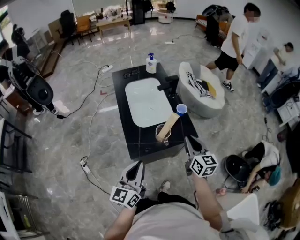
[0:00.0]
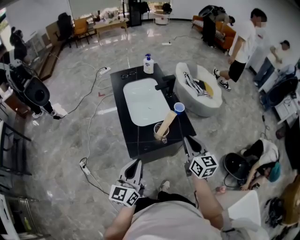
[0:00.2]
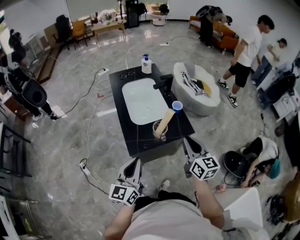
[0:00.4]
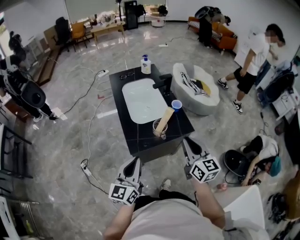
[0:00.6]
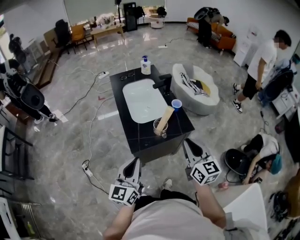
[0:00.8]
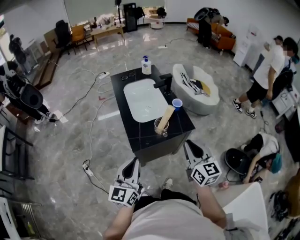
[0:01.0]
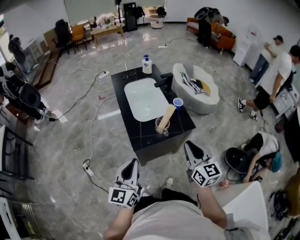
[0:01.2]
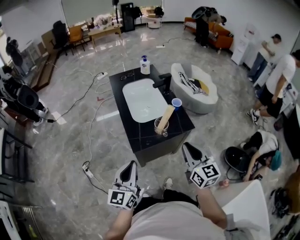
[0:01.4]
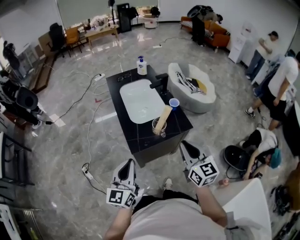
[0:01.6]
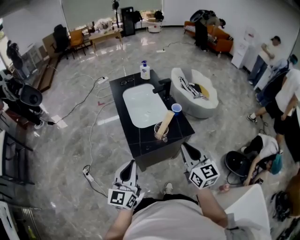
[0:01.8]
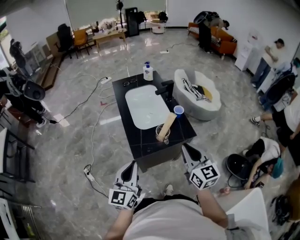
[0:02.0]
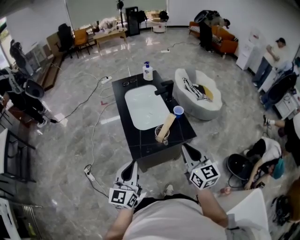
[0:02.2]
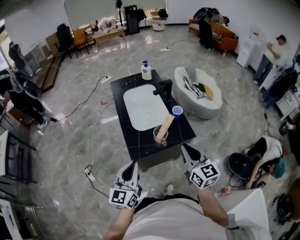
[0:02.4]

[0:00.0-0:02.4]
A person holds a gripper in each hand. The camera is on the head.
0:00.0 to 0:01.2: The left gripper is displaced backward by roughly 5 cm; the right gripper shifts roughly 15 cm backward and upward.
0:01.2 to 0:02.4: The grippers both shift forward by about 5 cm.

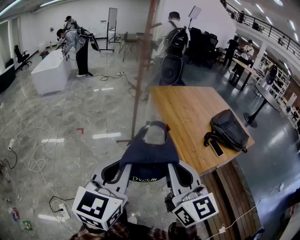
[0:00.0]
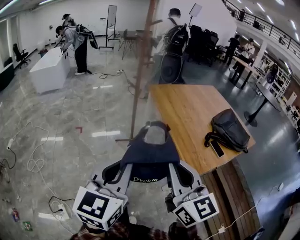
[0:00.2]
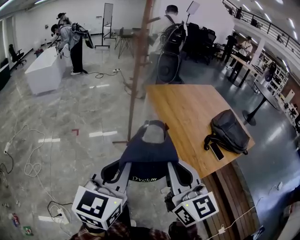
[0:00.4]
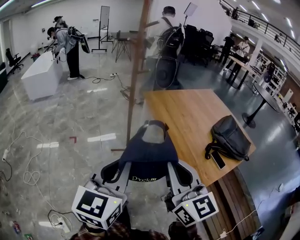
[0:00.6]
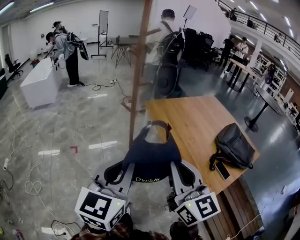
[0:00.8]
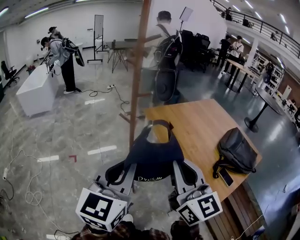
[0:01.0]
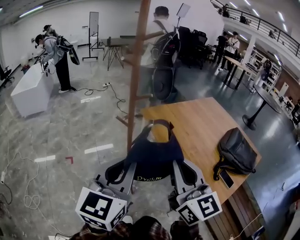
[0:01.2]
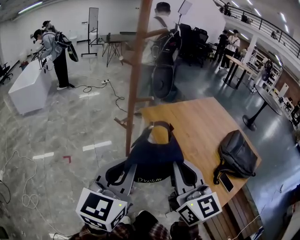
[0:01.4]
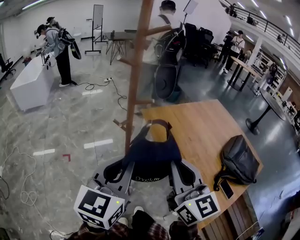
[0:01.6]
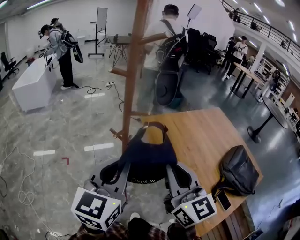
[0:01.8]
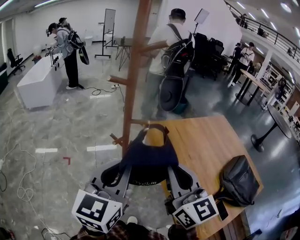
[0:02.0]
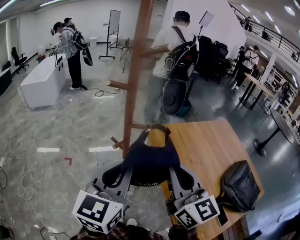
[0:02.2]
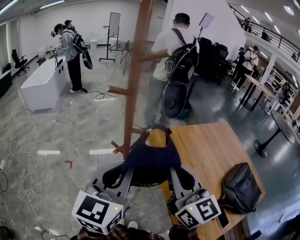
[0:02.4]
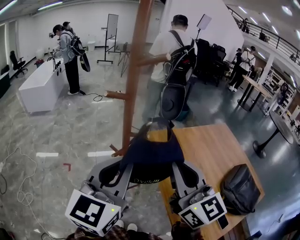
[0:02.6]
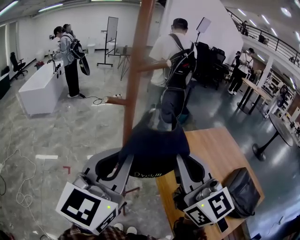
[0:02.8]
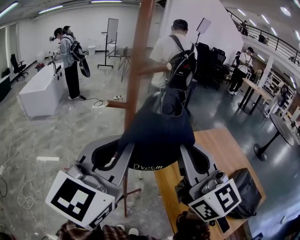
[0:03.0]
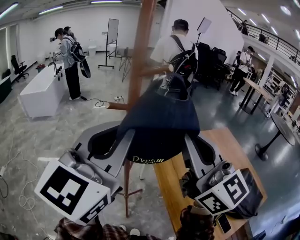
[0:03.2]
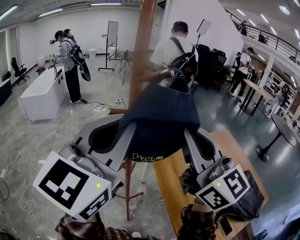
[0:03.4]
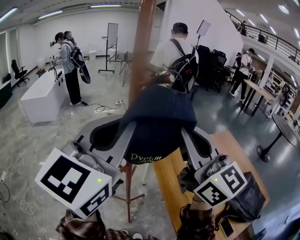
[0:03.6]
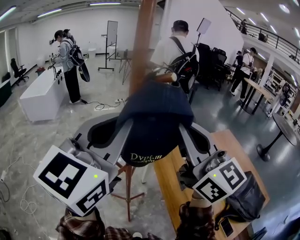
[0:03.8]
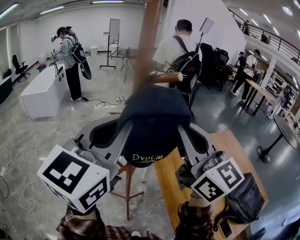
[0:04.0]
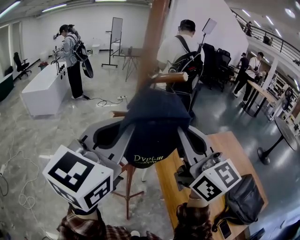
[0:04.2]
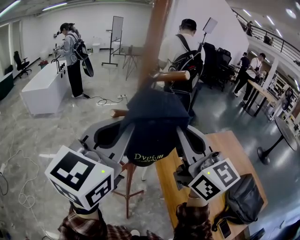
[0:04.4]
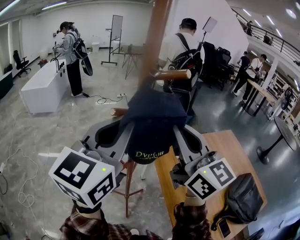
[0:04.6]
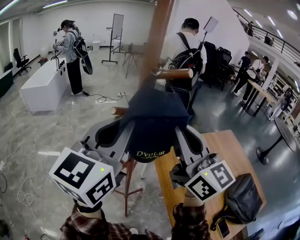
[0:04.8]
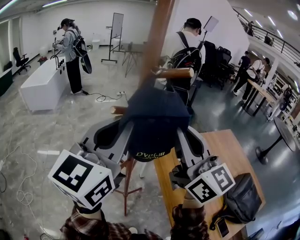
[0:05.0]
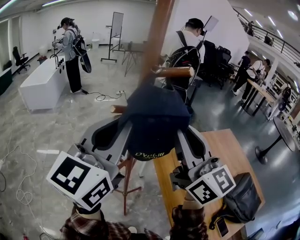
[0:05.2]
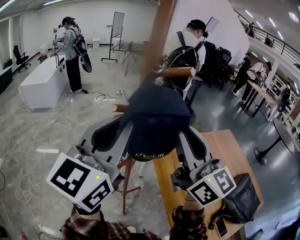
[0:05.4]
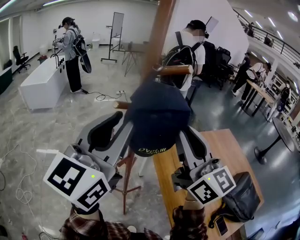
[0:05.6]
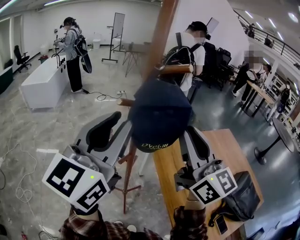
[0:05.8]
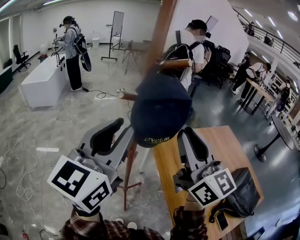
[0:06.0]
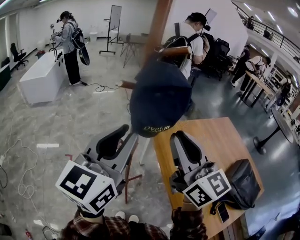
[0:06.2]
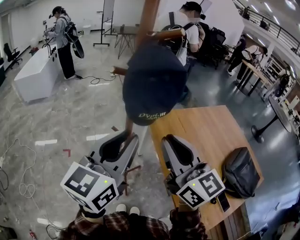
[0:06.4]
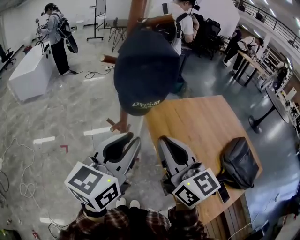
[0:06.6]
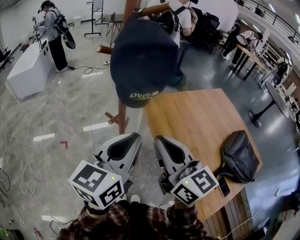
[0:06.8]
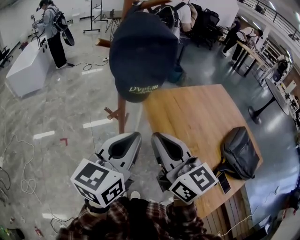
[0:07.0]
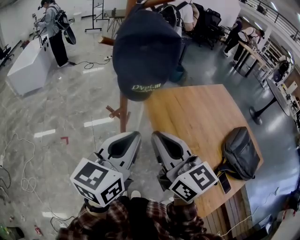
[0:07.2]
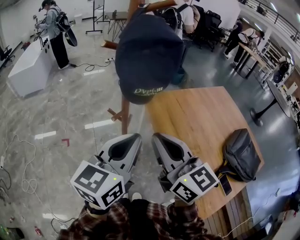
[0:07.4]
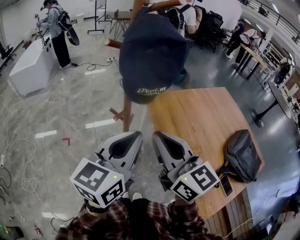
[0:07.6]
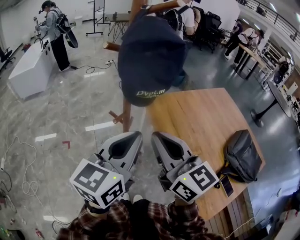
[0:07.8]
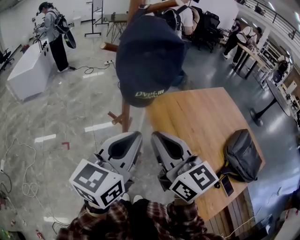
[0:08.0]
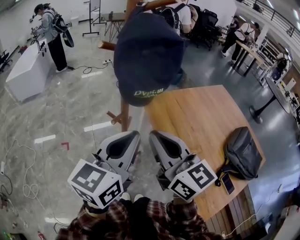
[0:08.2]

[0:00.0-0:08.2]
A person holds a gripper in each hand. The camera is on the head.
0:00.0 to 0:01.6: The two grippers travel together, forward, roughly 50 cm.
0:01.6 to 0:03.2: Both grippers travel together upward and forward, roughly 25 cm. The right gripper rotates some 20 degrees.
0:03.2 to 0:05.0: Both grippers travel together forward, roughly 10 cm.
0:05.0 to 0:06.6: Both grippers move downward and backward, about 20 cm. The left gripper turns by about 20 degrees.
0:06.6 to 0:08.2: The grippers stay close to where they were, moving slightly.

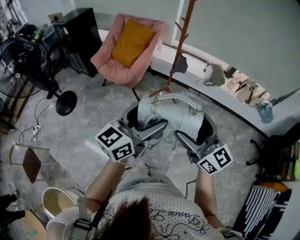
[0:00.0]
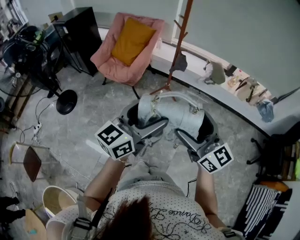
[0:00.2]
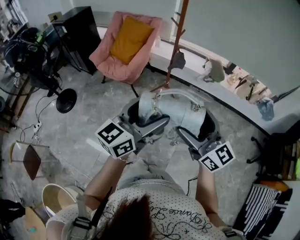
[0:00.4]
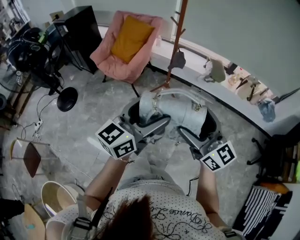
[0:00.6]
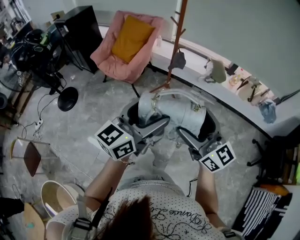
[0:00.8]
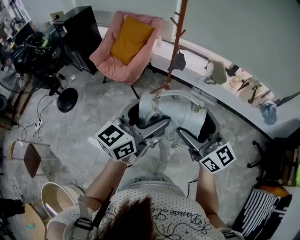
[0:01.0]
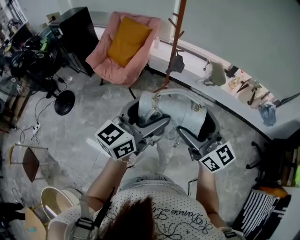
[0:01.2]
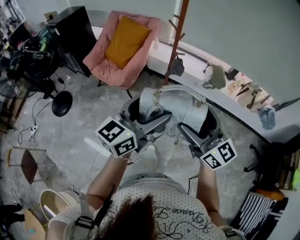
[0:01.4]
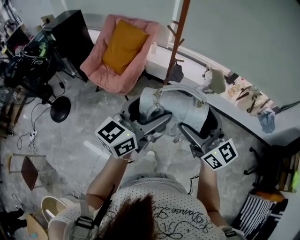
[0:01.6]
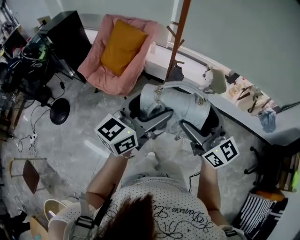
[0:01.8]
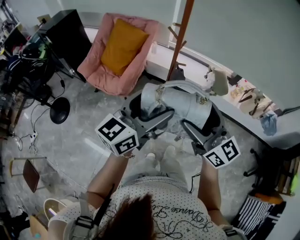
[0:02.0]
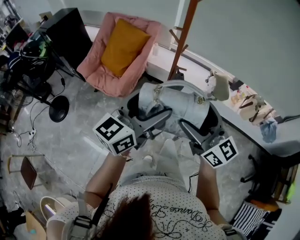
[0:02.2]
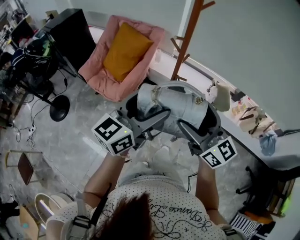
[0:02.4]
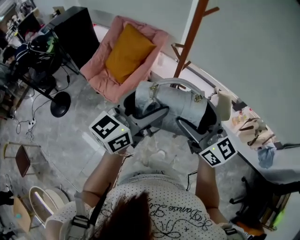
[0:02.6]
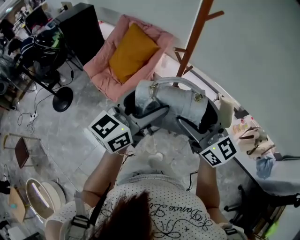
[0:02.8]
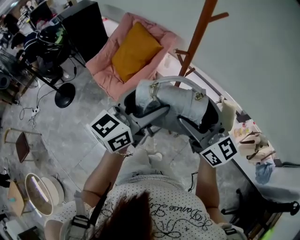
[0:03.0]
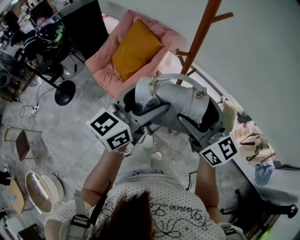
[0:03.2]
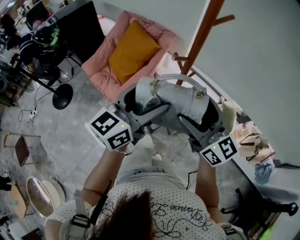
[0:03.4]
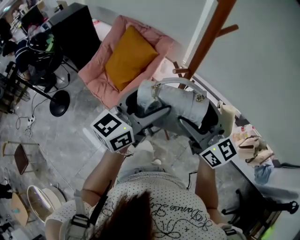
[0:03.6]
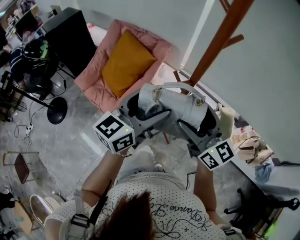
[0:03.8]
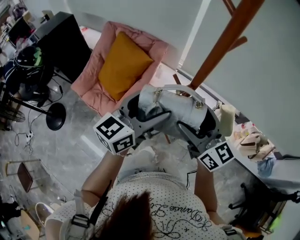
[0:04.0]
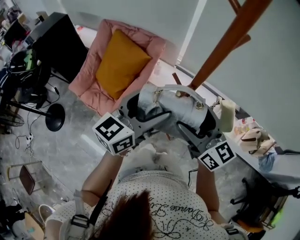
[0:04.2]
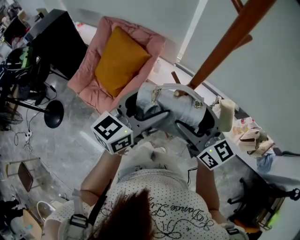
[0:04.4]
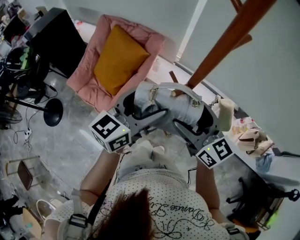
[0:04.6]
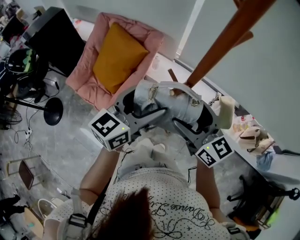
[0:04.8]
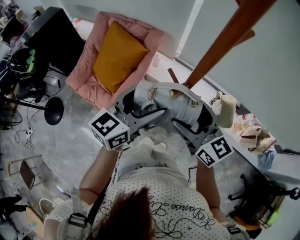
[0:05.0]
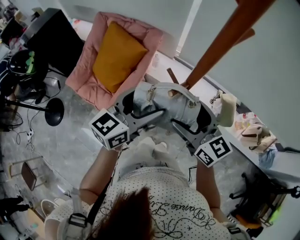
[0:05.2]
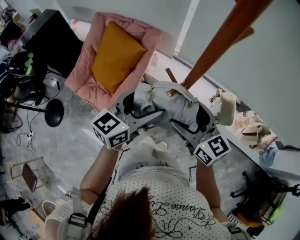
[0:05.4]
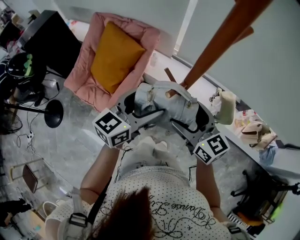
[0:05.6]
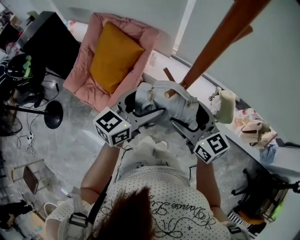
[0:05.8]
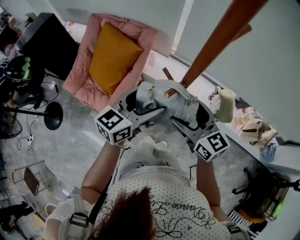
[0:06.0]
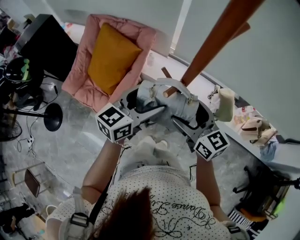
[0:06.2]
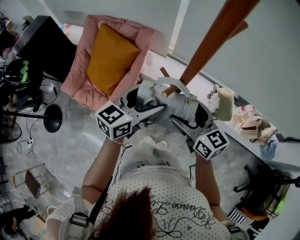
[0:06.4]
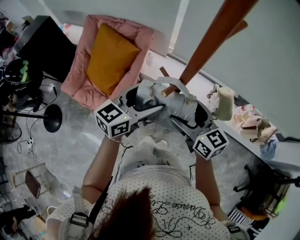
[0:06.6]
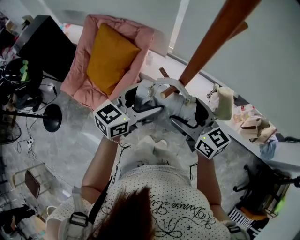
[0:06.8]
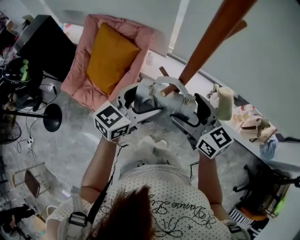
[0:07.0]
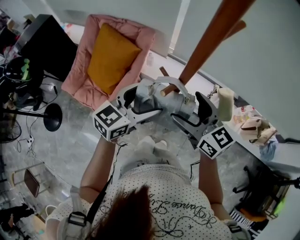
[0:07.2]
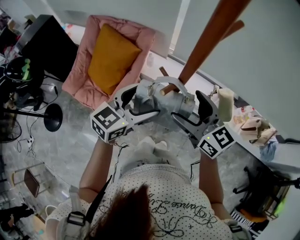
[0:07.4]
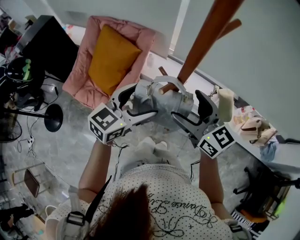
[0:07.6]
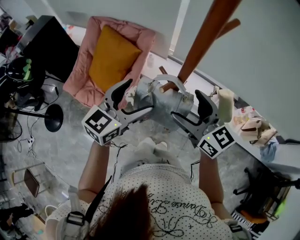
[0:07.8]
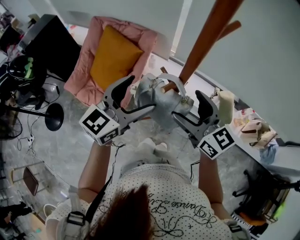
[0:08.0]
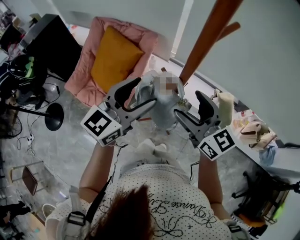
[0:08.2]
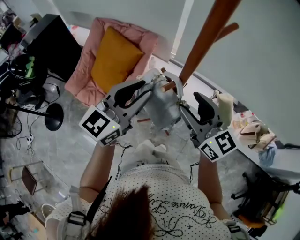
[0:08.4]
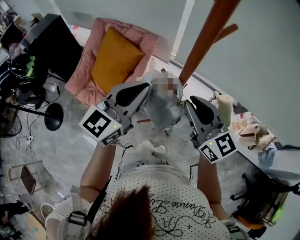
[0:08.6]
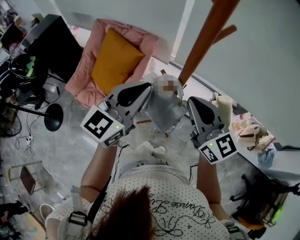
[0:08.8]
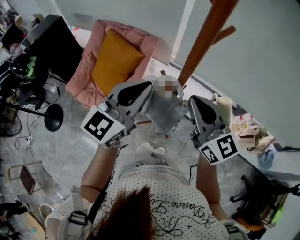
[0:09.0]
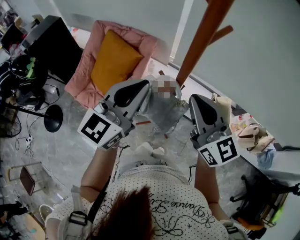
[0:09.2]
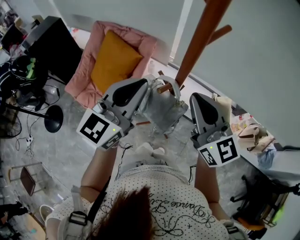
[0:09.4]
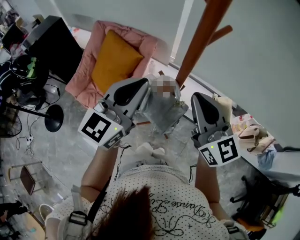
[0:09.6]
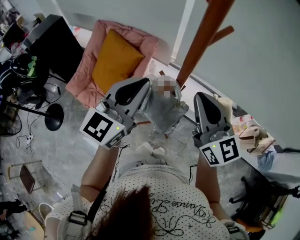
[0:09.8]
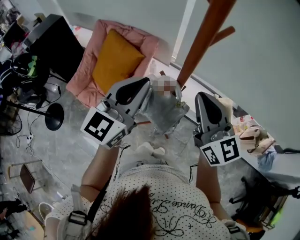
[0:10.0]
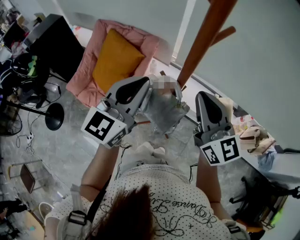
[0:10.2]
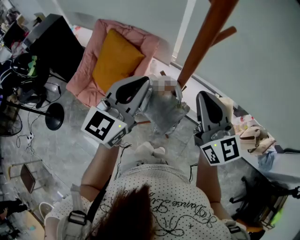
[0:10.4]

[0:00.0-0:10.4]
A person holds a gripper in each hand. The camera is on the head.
0:00.0 to 0:01.4: The two grippers go about 15 cm forward and to the right.
0:01.4 to 0:03.0: Both grippers move forward, approximately 35 cm.
0:03.0 to 0:04.4: Both grippers travel together forward, about 20 cm.
0:04.4 to 0:06.0: The two grippers go roughly 5 cm downward.
0:06.0 to 0:07.4: The grippers move only a little.
0:07.4 to 0:09.0: The right gripper travels upward by roughly 5 cm, and closes its fingers, while the left gripper shifts approximately 10 cm upward, turns by some 20 degrees, and closes up.
0:09.0 to 0:10.4: The grippers stay close to where they were, moving slightly.

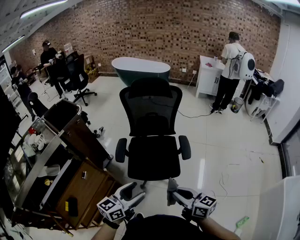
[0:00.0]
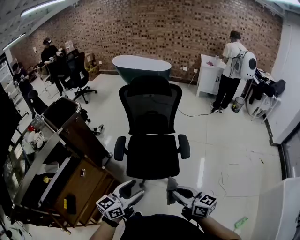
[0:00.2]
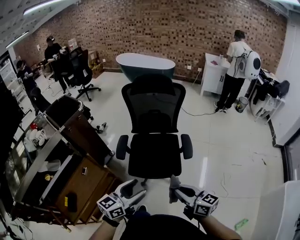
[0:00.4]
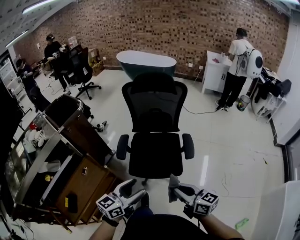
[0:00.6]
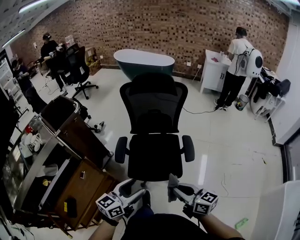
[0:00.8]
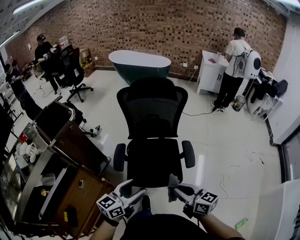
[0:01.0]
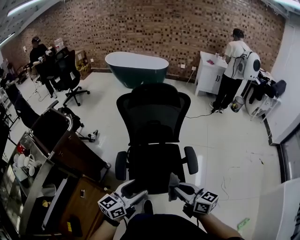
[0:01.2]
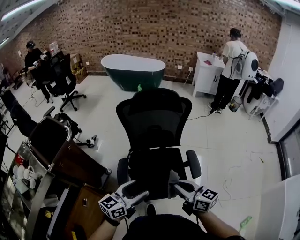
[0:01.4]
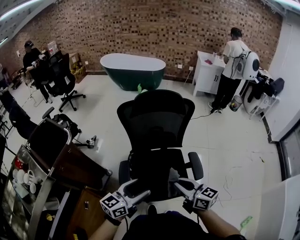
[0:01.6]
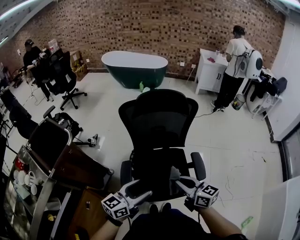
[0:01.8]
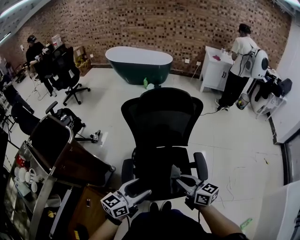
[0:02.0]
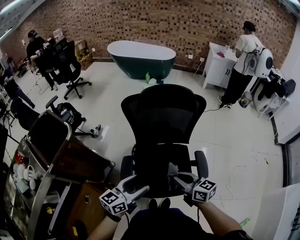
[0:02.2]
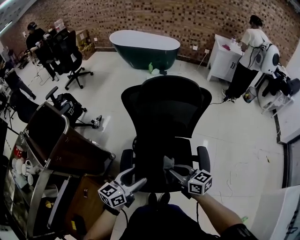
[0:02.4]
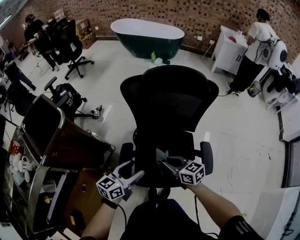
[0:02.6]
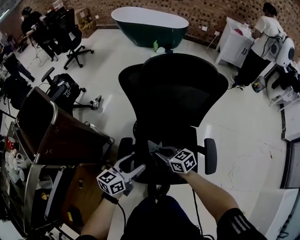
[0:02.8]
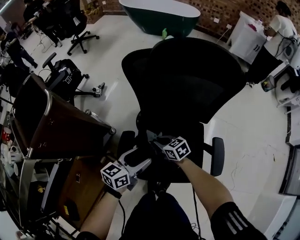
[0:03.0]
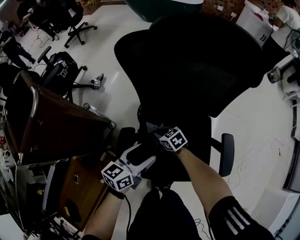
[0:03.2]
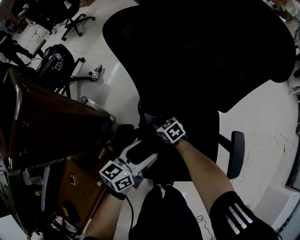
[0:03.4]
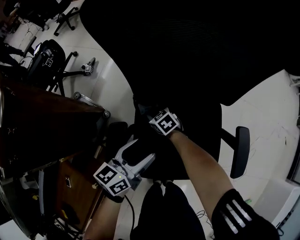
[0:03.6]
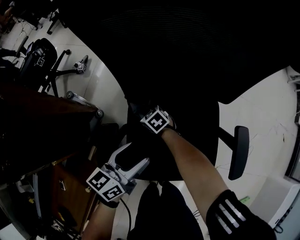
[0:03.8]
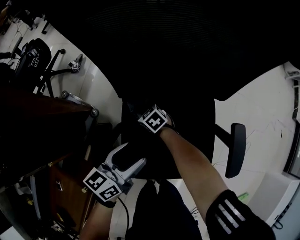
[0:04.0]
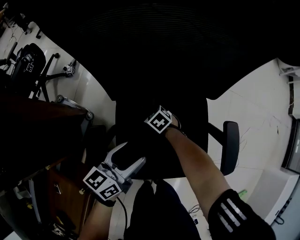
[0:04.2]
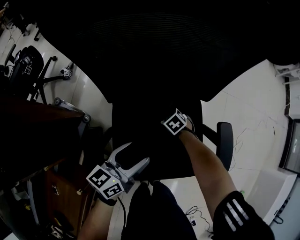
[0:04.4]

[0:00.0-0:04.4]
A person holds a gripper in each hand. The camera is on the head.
0:00.0 to 0:01.4: Both grippers move forward, some 25 cm.
0:01.4 to 0:03.0: Both grippers move downward and forward, about 35 cm. The right gripper swivels some 40 degrees, while the left gripper swivels some 20 degrees.
0:03.0 to 0:04.4: The left gripper goes about 15 cm downward and to the right; the right gripper shifts approximately 30 cm downward and to the right, and tips its fingers downward by roughly 30 degrees.
